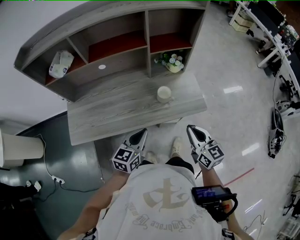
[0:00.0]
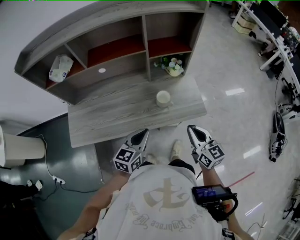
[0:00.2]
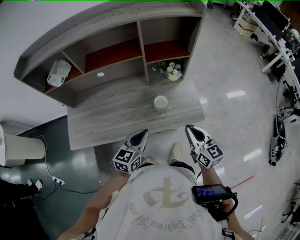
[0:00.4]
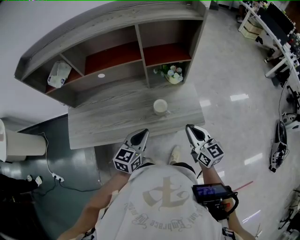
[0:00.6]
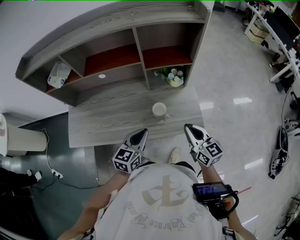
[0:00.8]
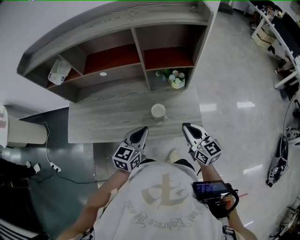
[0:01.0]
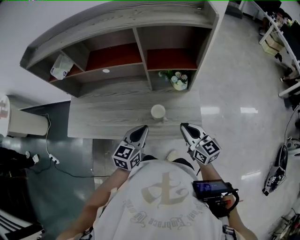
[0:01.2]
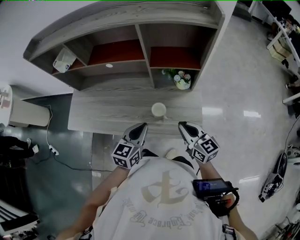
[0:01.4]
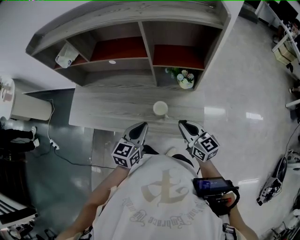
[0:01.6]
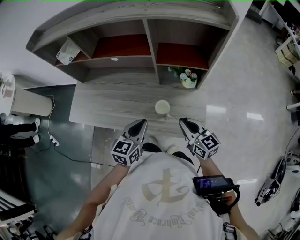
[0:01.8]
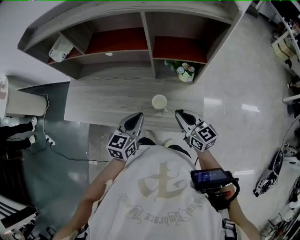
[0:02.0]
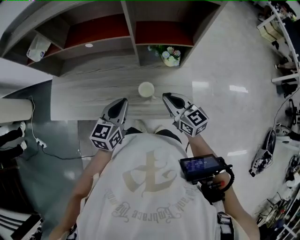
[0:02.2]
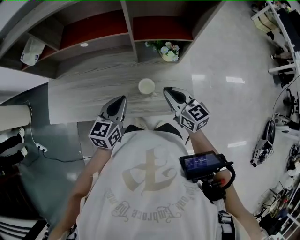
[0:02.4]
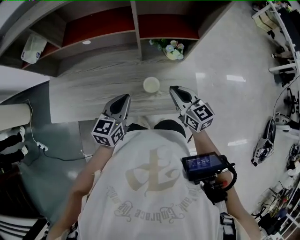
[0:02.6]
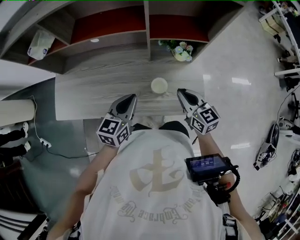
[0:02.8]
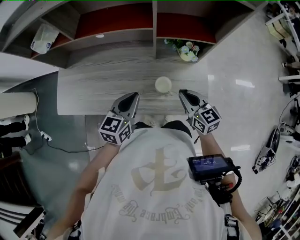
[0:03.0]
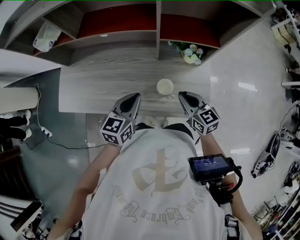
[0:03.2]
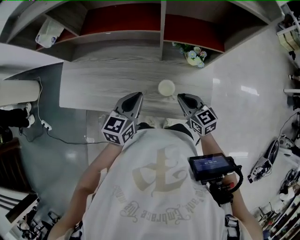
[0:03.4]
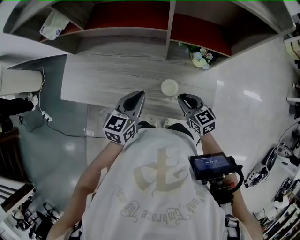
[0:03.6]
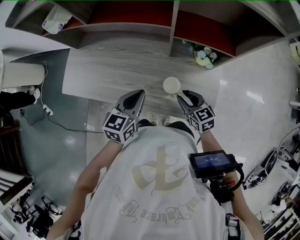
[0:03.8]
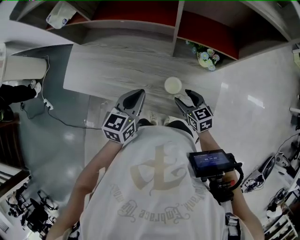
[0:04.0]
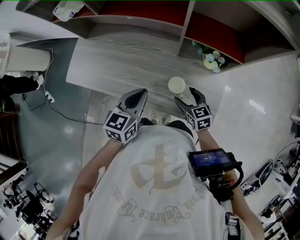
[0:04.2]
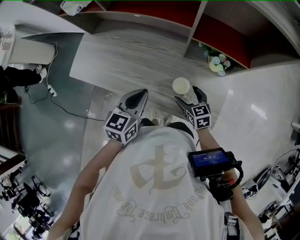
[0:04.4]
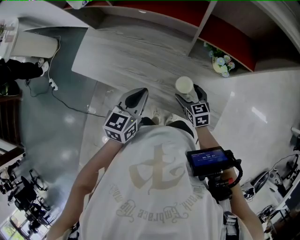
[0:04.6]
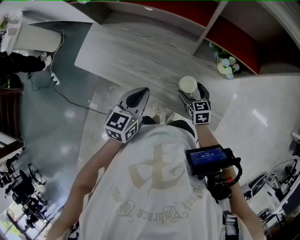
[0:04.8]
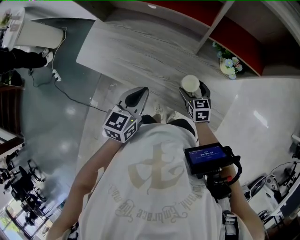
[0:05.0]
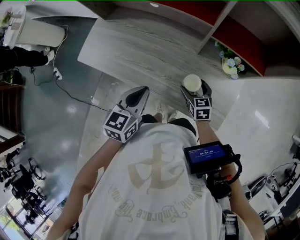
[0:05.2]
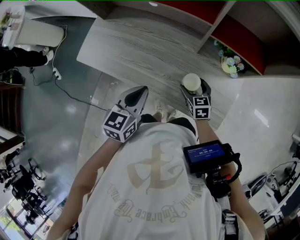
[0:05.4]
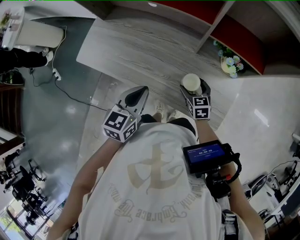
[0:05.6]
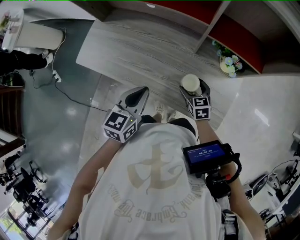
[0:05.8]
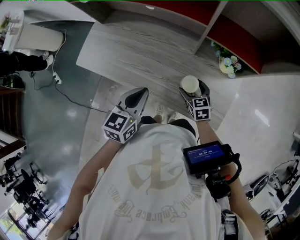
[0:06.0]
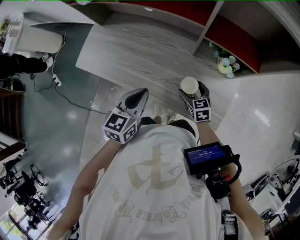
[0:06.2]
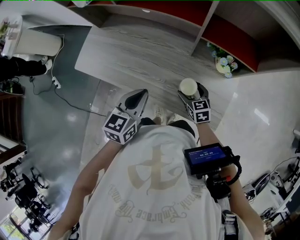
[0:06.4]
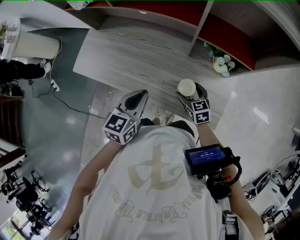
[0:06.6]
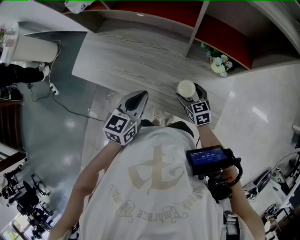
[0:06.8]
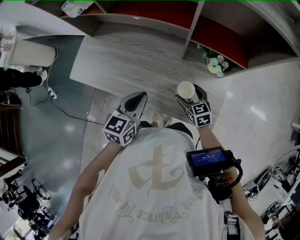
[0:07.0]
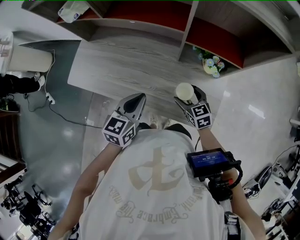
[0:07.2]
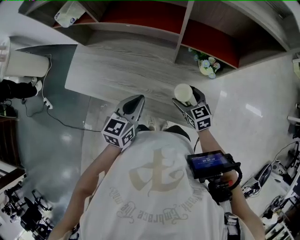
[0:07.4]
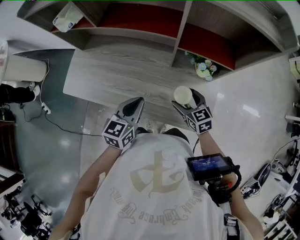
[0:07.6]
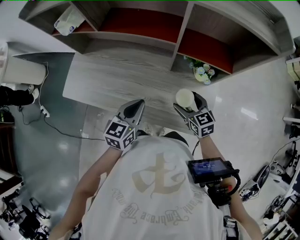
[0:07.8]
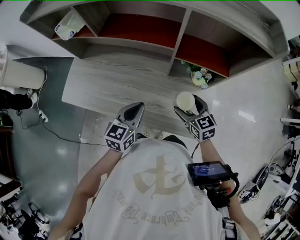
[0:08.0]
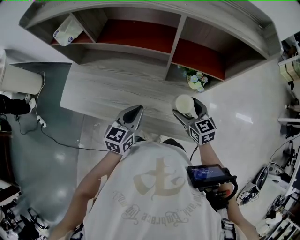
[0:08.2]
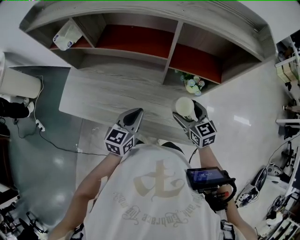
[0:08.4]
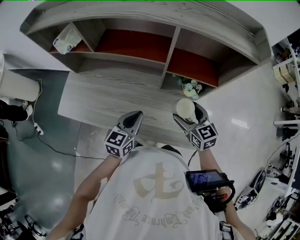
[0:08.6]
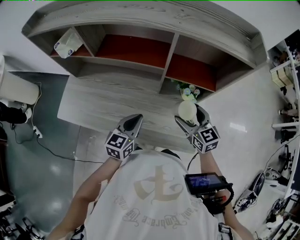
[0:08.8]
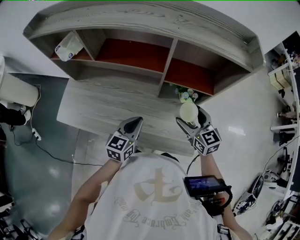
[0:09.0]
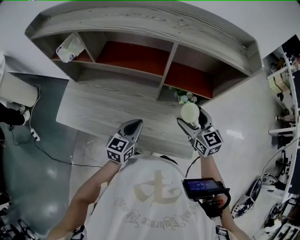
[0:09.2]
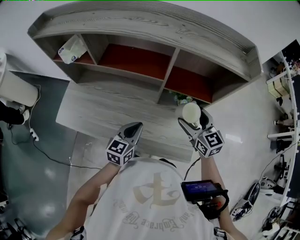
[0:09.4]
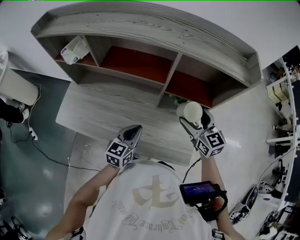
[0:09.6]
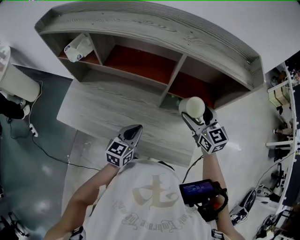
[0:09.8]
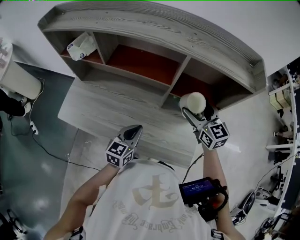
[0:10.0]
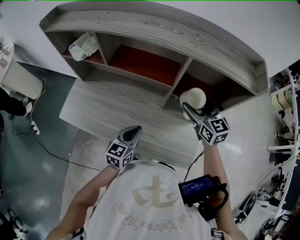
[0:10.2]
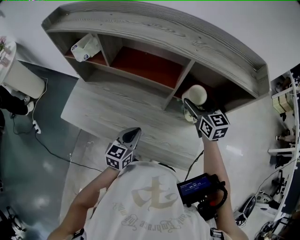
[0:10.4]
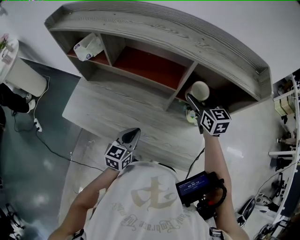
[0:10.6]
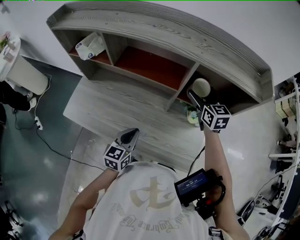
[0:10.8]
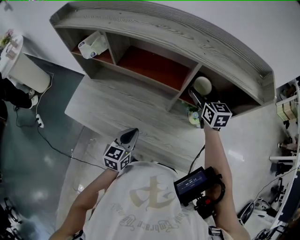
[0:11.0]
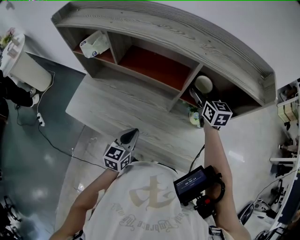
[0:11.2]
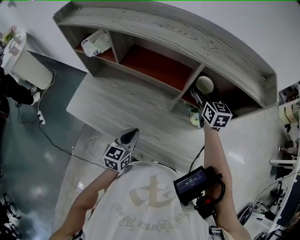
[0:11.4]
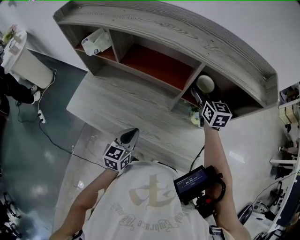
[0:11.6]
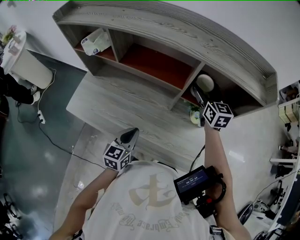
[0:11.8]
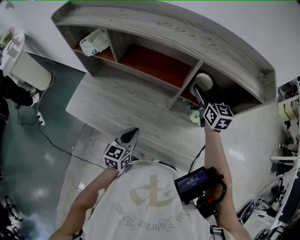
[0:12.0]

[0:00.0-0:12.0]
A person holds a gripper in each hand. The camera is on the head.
0:00.0 to 0:01.6: The left gripper ends up approximately 20 cm from where it was, and rotates roughly 20 degrees. Meanwhile the right gripper ends up roughly 20 cm from where it was, and swivels roughly 30 degrees.
0:01.6 to 0:03.0: The left gripper shifts approximately 10 cm forward and to the left. Meanwhile the right gripper goes roughly 10 cm forward, downward and to the left.
0:03.0 to 0:04.4: The right gripper moves downward, roughly 15 cm, changes its angle by roughly 20 degrees, and opens its fingers.
0:04.4 to 0:06.0: The grippers move only a little.
0:06.0 to 0:07.6: The left gripper moves approximately 5 cm; the right gripper travels upward by about 10 cm.
0:07.6 to 0:09.0: The right gripper shifts some 15 cm upward.
0:09.0 to 0:10.4: The right gripper heads forward and upward, covering some 15 cm.
0:10.4 to 0:12.0: The right gripper heads forward, covering about 5 cm.

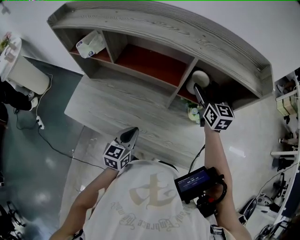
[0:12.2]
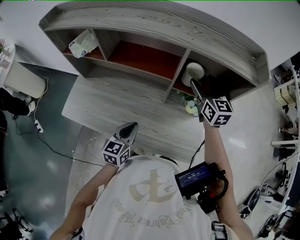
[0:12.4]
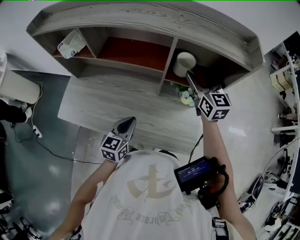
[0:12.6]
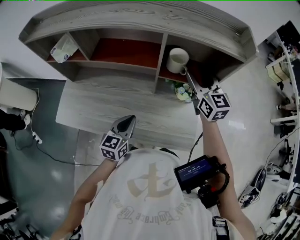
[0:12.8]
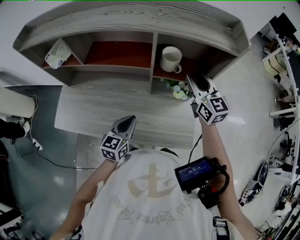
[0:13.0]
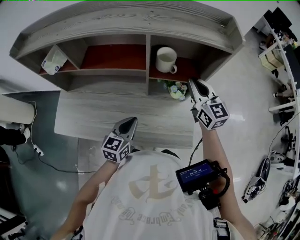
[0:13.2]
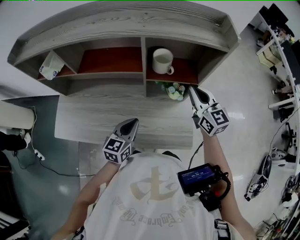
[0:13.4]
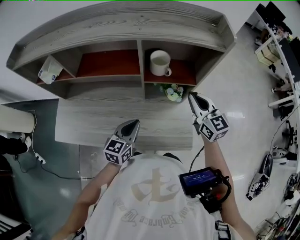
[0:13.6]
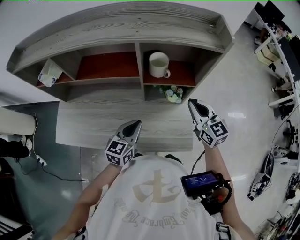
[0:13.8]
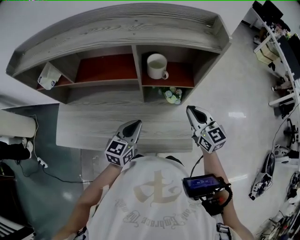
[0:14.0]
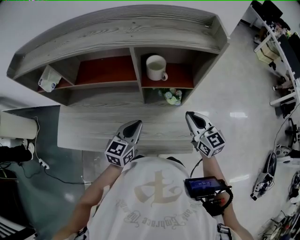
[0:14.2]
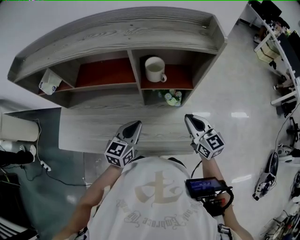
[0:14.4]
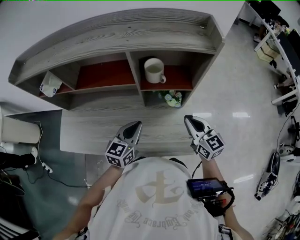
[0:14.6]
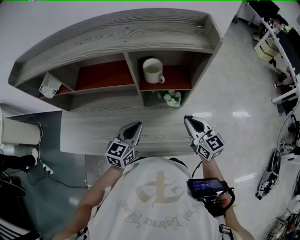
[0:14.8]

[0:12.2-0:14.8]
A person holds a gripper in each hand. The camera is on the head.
0:12.2 to 0:13.4: The right gripper shifts about 15 cm backward and to the right, and closes its fingers. Meanwhile the left gripper travels to the right by approximately 10 cm.
0:13.4 to 0:14.8: The left gripper changes place by approximately 5 cm. The right gripper goes approximately 10 cm backward and downward.
